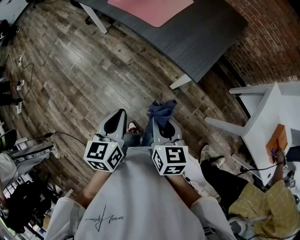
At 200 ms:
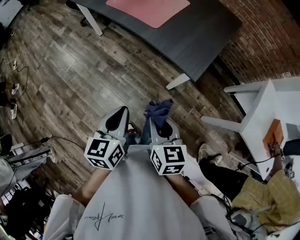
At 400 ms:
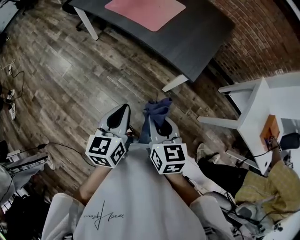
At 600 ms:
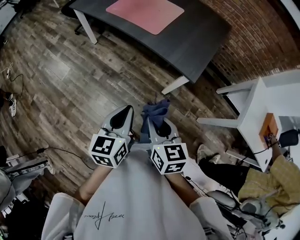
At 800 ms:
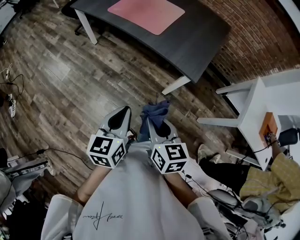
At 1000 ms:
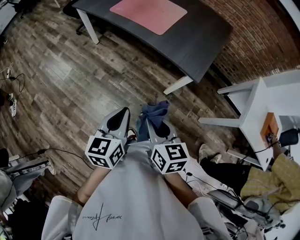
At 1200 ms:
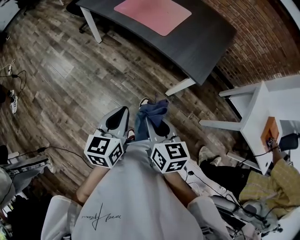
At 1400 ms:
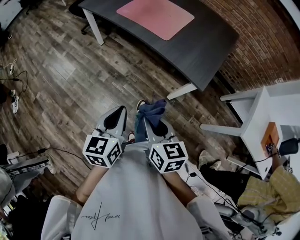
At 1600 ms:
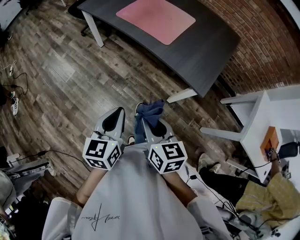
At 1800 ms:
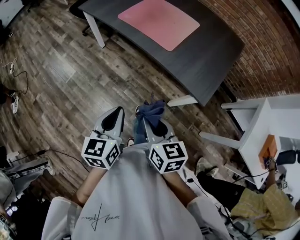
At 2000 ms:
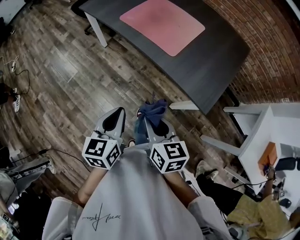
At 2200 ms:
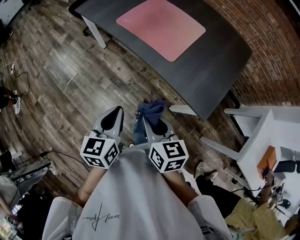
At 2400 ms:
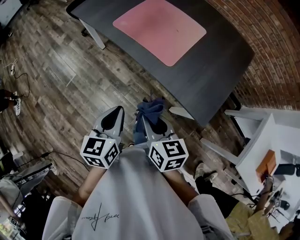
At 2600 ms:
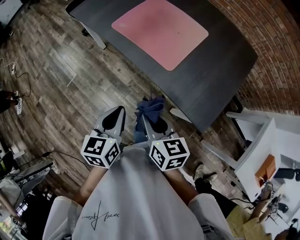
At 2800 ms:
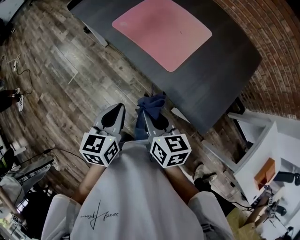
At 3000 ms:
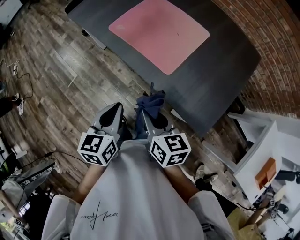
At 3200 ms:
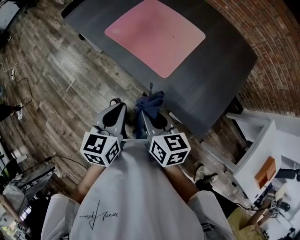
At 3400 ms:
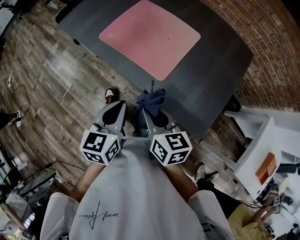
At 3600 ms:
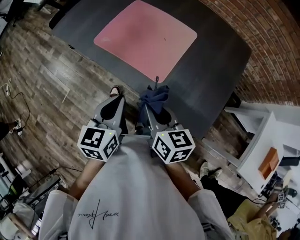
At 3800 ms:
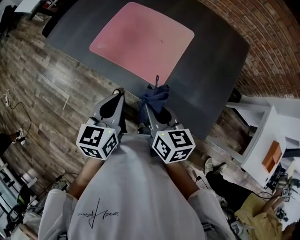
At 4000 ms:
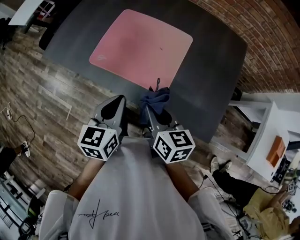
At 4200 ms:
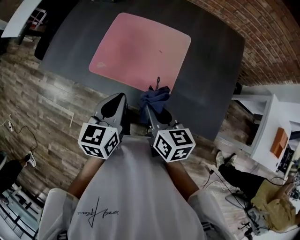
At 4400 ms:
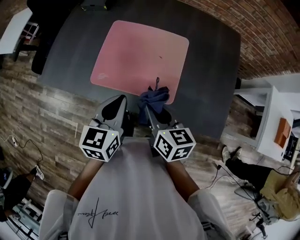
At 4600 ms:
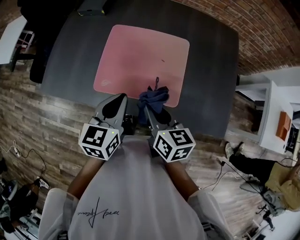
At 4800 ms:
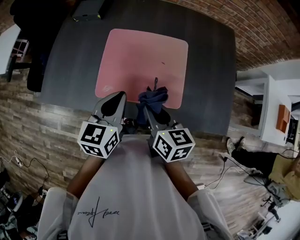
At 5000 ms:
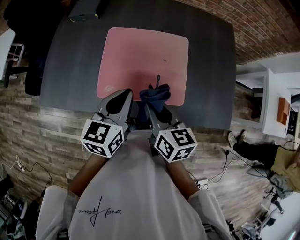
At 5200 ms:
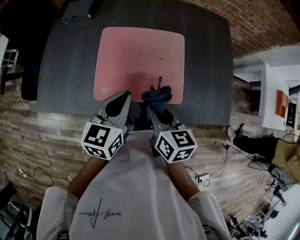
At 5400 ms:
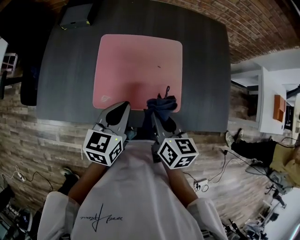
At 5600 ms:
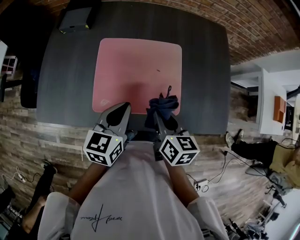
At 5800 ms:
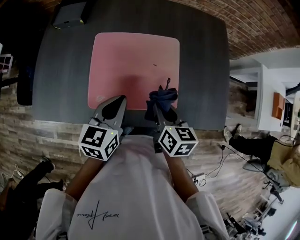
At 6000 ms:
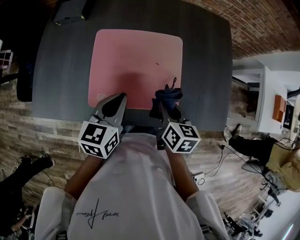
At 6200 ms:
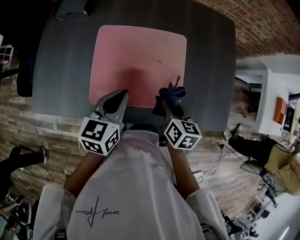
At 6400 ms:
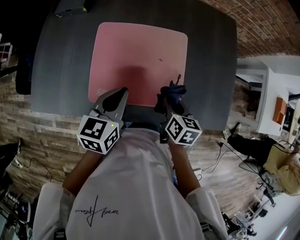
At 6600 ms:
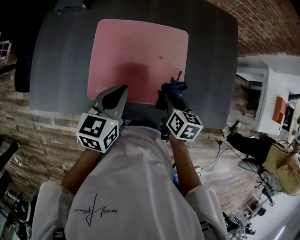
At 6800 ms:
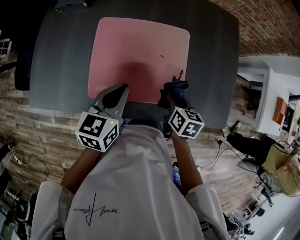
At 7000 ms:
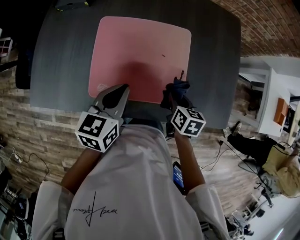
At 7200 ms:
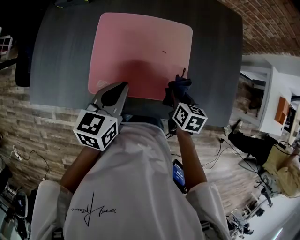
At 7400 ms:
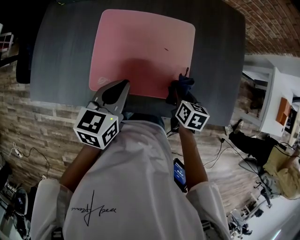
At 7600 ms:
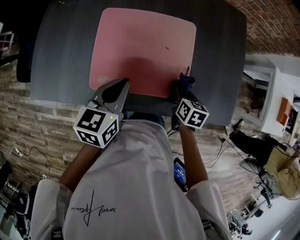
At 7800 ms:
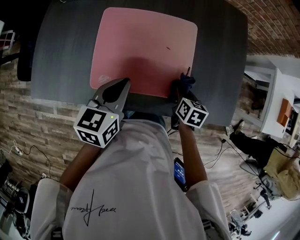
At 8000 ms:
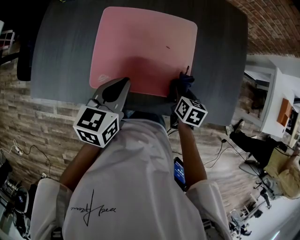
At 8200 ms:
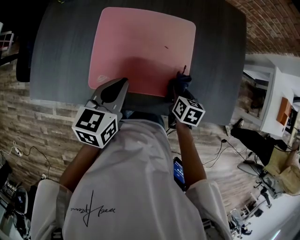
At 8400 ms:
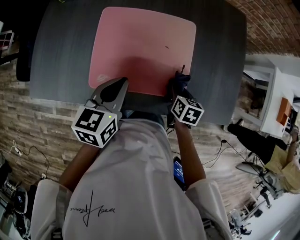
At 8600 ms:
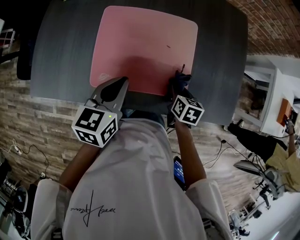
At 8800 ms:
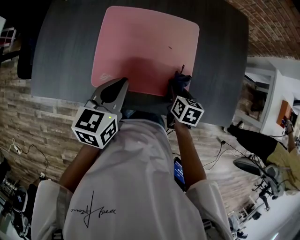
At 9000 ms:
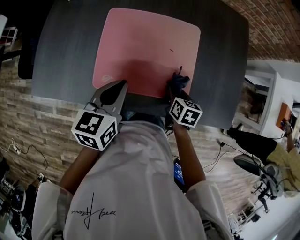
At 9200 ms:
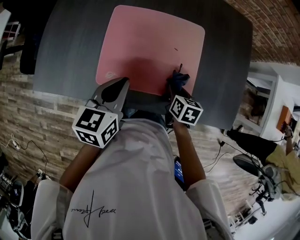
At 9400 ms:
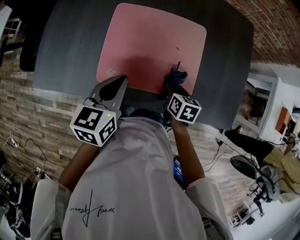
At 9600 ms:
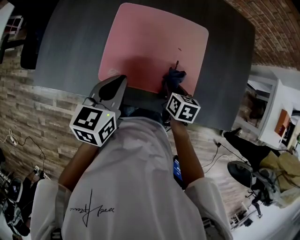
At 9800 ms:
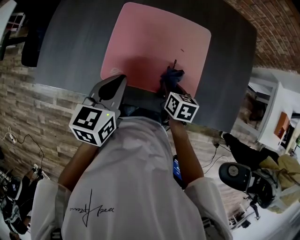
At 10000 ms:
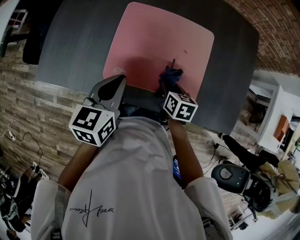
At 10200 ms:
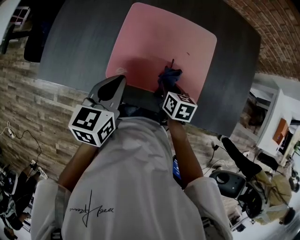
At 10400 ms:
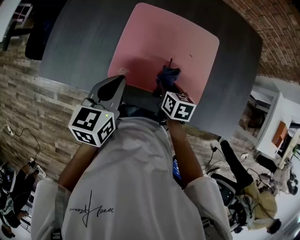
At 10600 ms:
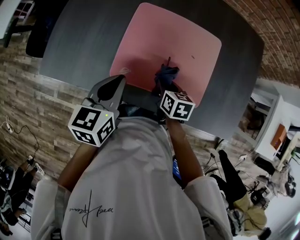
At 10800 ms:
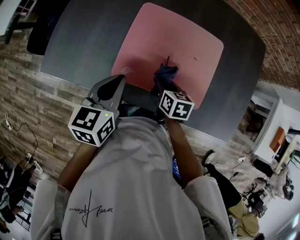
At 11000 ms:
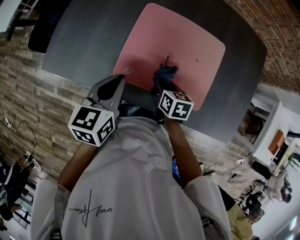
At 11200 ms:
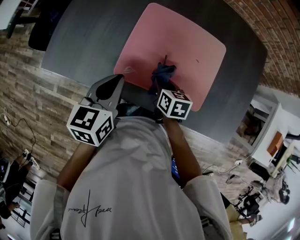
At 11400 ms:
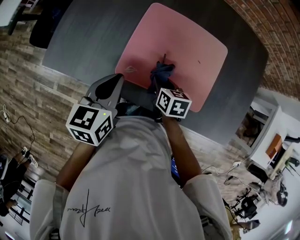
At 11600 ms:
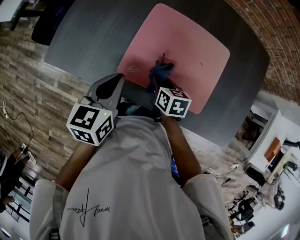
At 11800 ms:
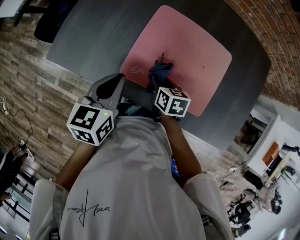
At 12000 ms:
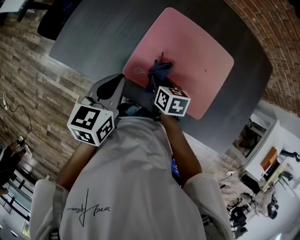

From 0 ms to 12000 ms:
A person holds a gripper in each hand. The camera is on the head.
From 0 ms to 1600 ms: The right gripper moves to the left, roughly 15 cm, while the left gripper moves to the left and forward, about 15 cm.
From 1600 ms to 3000 ms: The two grippers go some 25 cm forward.
From 3000 ms to 4400 ms: The right gripper ends up some 20 cm from where it was, and turns by some 30 degrees. Meanwhile the left gripper changes place by some 25 cm, and rotates roughly 30 degrees.
From 4400 ms to 6000 ms: The left gripper travels forward by approximately 10 cm; the right gripper goes roughly 10 cm forward and downward, reaches about 5 cm to the left, then returns, and changes its angle by roughly 30 degrees.
From 6000 ms to 7600 ms: The right gripper heads downward and to the right, covering some 15 cm.
From 7600 ms to 9000 ms: The grippers move only a little.
From 9000 ms to 10400 ms: The right gripper goes approximately 10 cm to the left; the left gripper goes approximately 10 cm to the left.
From 10400 ms to 12000 ms: The left gripper moves to the left, approximately 5 cm, while the right gripper heads to the left, covering approximately 10 cm.

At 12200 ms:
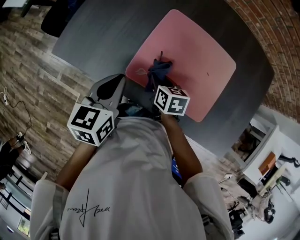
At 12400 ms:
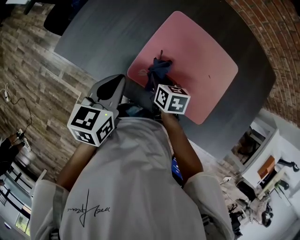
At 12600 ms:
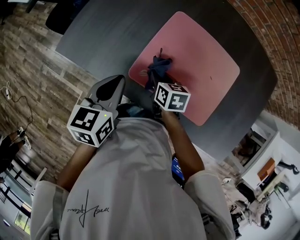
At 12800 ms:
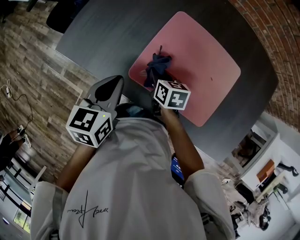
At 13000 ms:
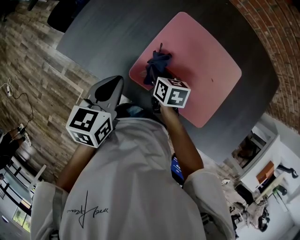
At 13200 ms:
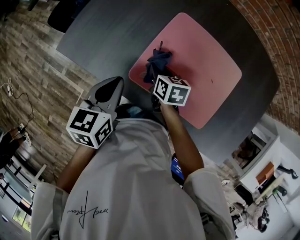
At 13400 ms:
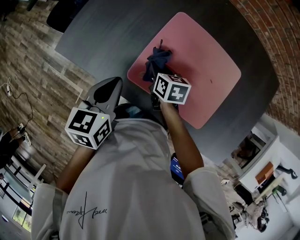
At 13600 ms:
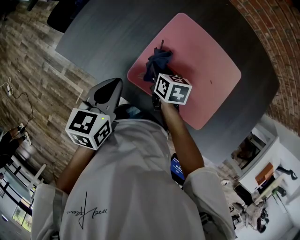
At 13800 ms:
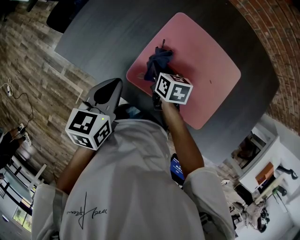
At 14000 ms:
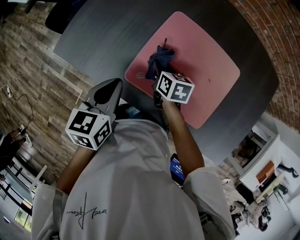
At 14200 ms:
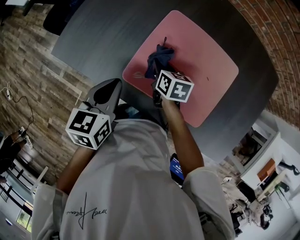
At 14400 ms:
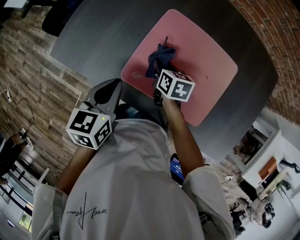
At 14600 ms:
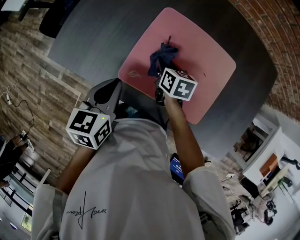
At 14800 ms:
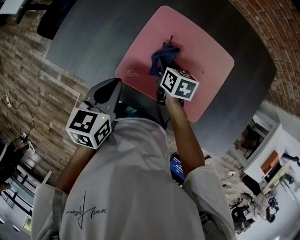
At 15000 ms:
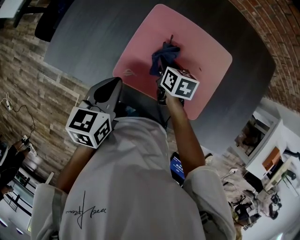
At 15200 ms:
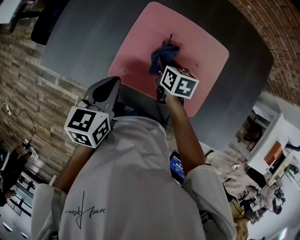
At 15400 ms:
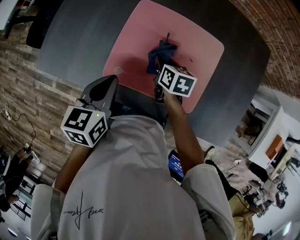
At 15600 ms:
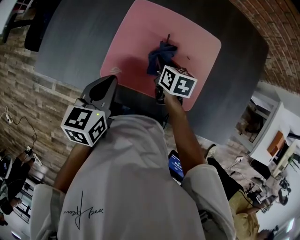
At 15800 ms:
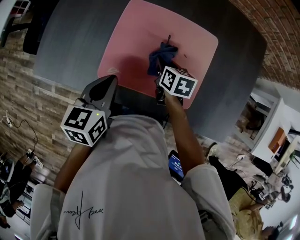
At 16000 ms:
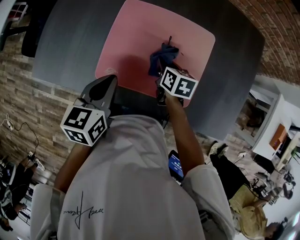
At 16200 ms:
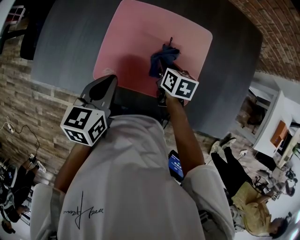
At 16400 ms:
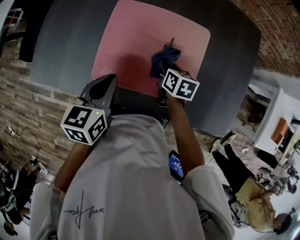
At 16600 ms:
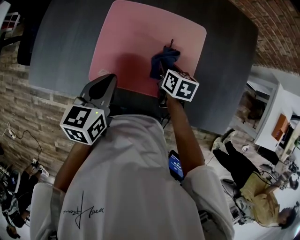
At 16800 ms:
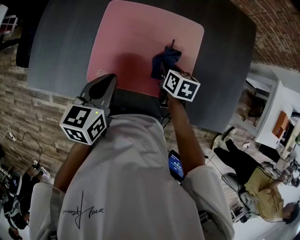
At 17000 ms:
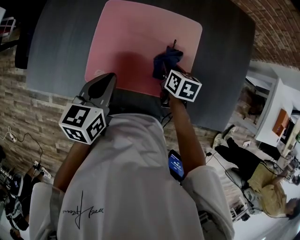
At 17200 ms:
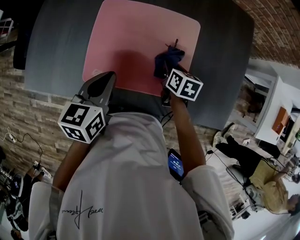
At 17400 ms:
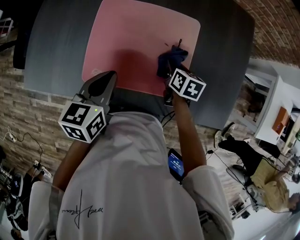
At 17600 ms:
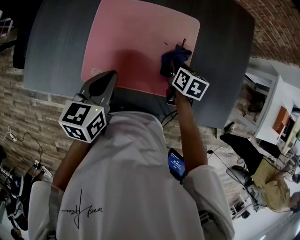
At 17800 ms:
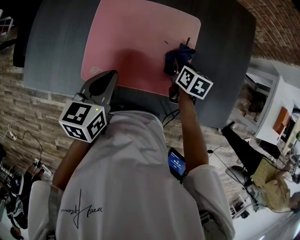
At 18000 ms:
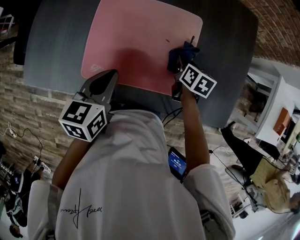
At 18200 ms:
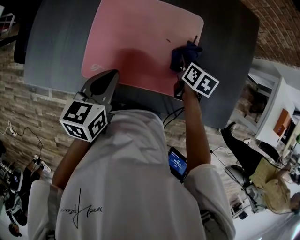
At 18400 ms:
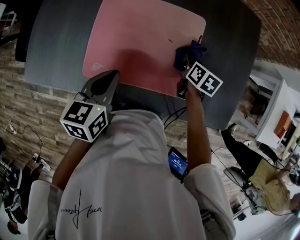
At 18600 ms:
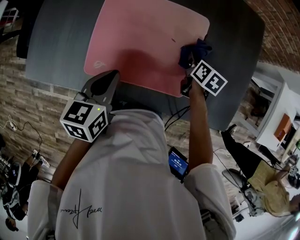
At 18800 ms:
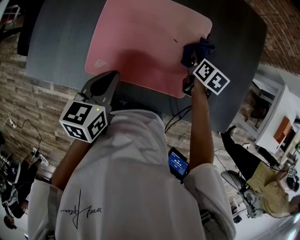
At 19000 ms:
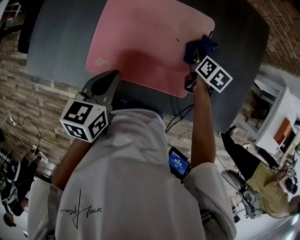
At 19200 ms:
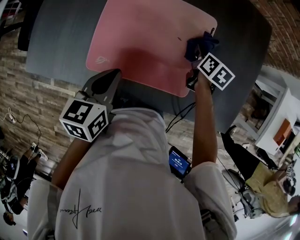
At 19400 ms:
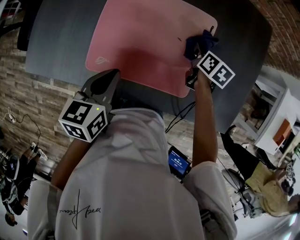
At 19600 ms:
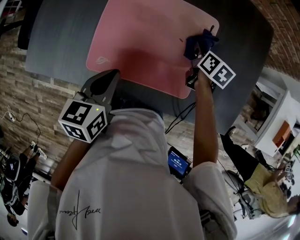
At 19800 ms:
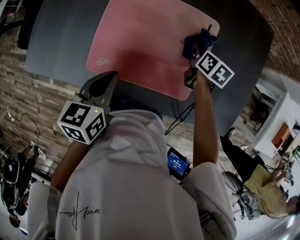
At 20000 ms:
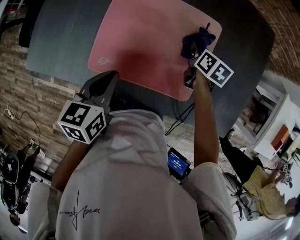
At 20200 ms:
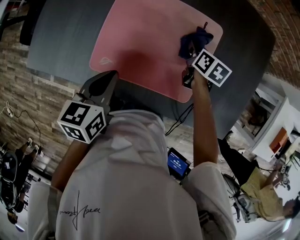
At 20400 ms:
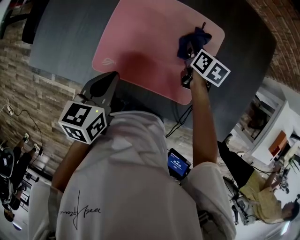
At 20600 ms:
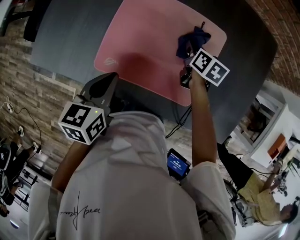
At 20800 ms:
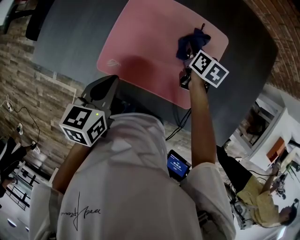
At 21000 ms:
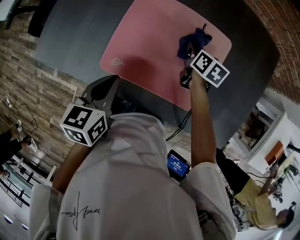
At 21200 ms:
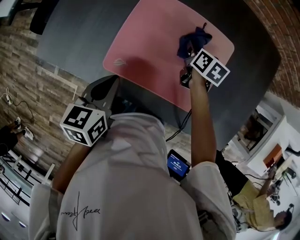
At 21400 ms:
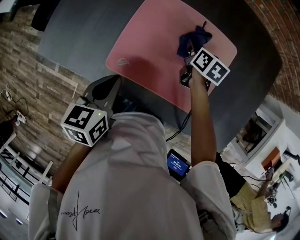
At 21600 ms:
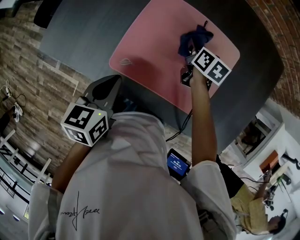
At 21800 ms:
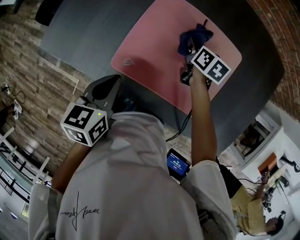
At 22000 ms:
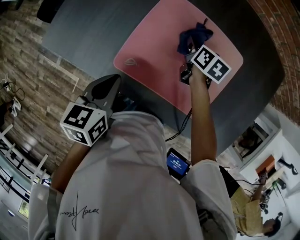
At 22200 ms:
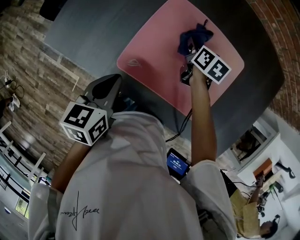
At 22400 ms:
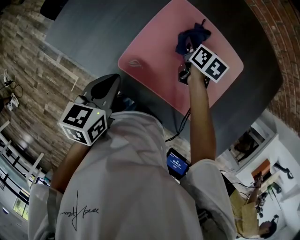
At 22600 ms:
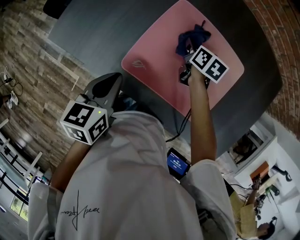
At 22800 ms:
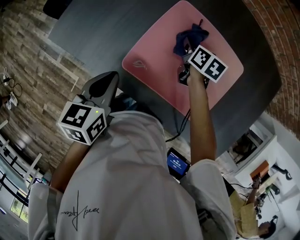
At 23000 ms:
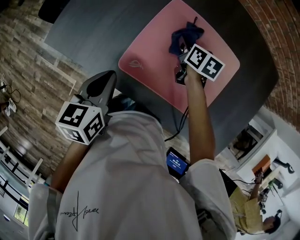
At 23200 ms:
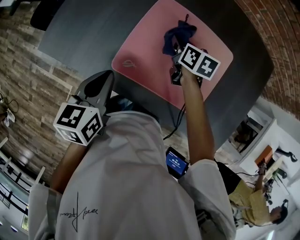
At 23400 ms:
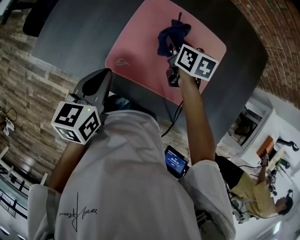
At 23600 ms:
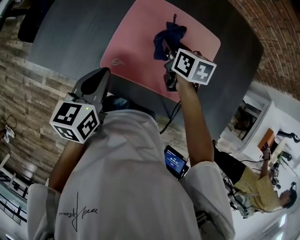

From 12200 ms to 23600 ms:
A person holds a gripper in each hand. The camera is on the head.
From 12200 ms to 13600 ms: The right gripper moves forward, some 5 cm.
From 13600 ms to 15000 ms: The left gripper goes approximately 5 cm to the right. The right gripper shifts roughly 10 cm to the right.
From 15000 ms to 16400 ms: The right gripper goes some 10 cm to the right; the left gripper travels to the right by approximately 5 cm.
From 16400 ms to 17800 ms: The right gripper shifts some 10 cm to the right. Meanwhile the left gripper is displaced to the right by approximately 5 cm.
From 17800 ms to 19400 ms: The right gripper travels forward by about 5 cm.
From 19400 ms to 20800 ms: The right gripper travels to the left by roughly 10 cm.
From 20800 ms to 22200 ms: The left gripper heads to the left, covering some 10 cm. The right gripper is displaced to the left by about 15 cm.
From 22200 ms to 23600 ms: The right gripper shifts approximately 10 cm upward and backward.
